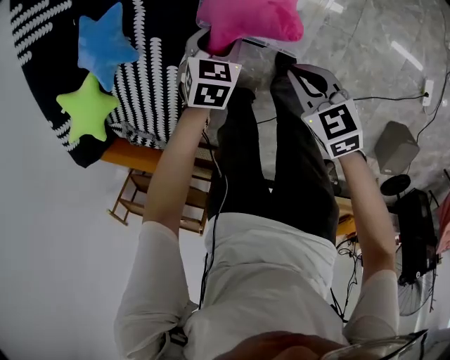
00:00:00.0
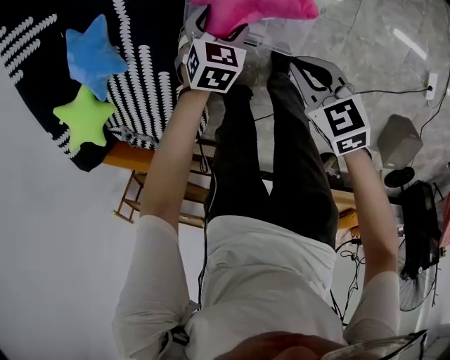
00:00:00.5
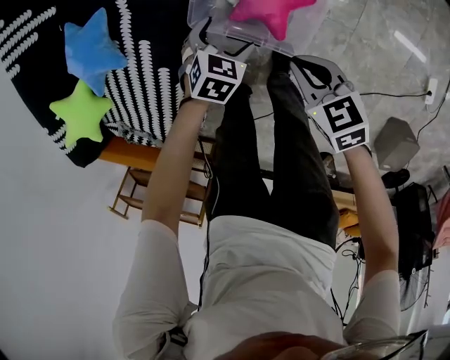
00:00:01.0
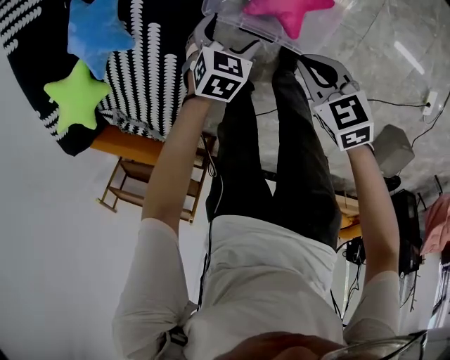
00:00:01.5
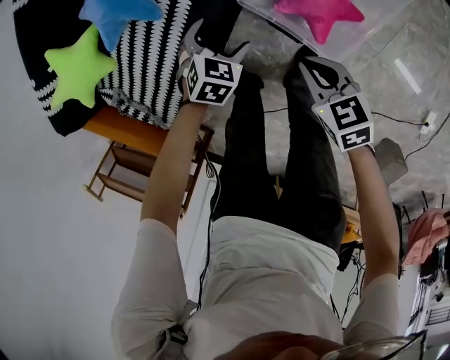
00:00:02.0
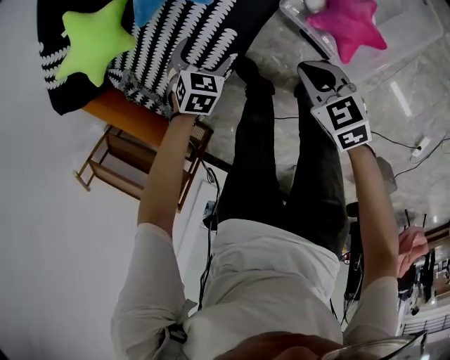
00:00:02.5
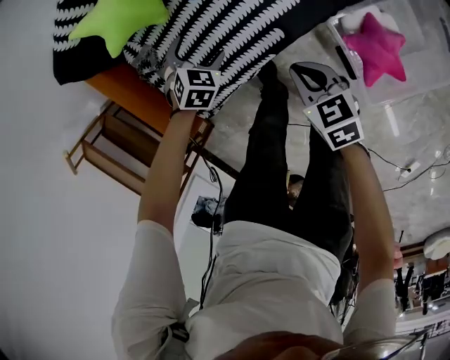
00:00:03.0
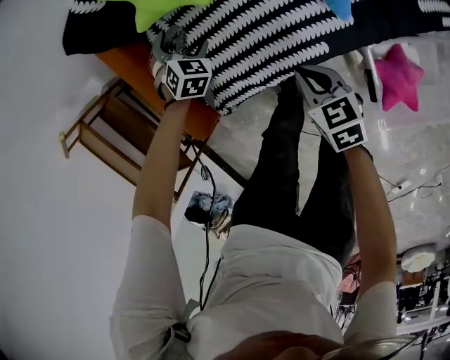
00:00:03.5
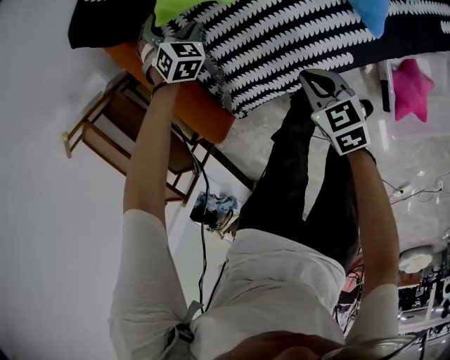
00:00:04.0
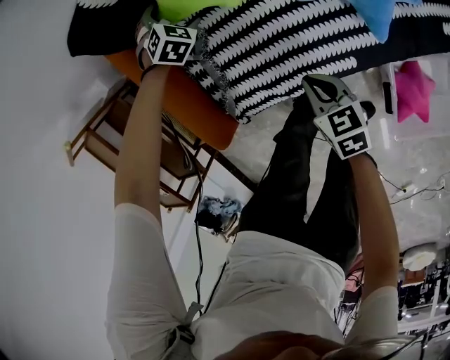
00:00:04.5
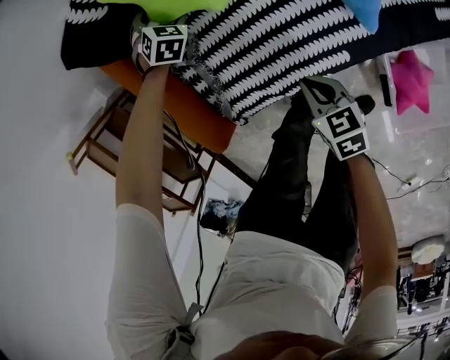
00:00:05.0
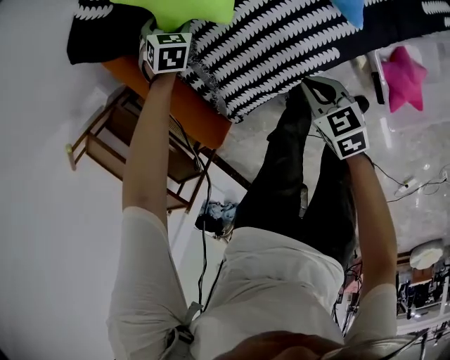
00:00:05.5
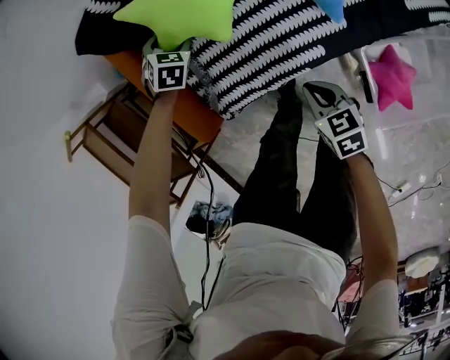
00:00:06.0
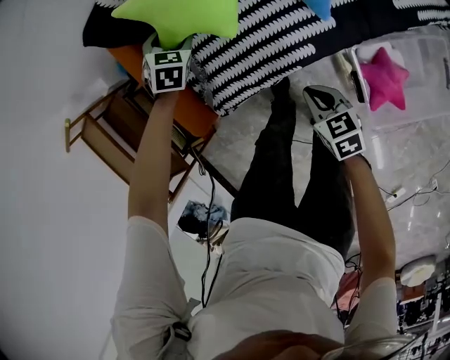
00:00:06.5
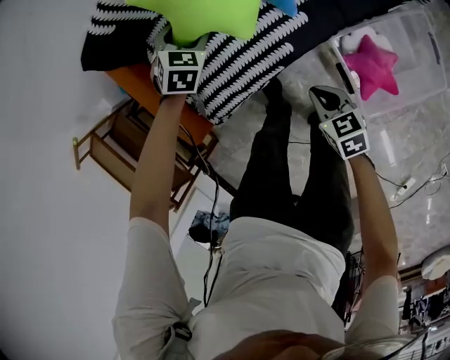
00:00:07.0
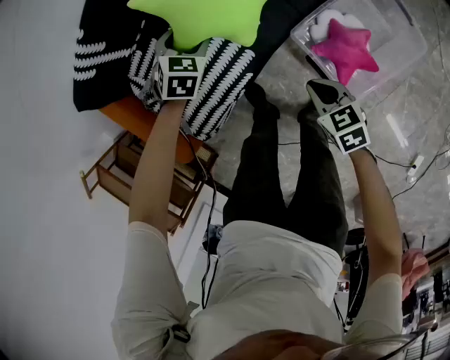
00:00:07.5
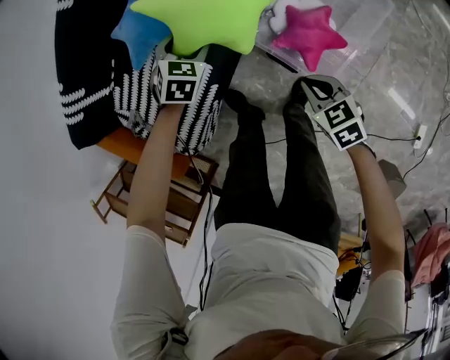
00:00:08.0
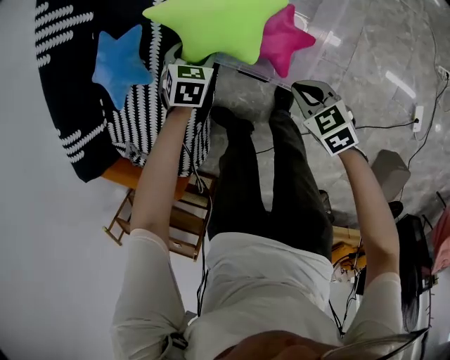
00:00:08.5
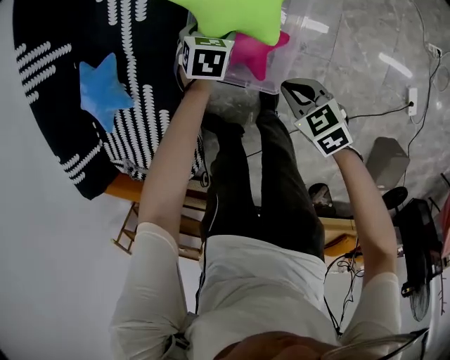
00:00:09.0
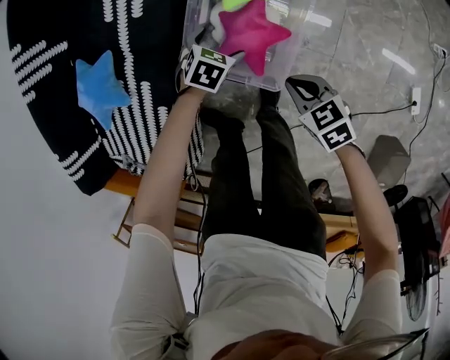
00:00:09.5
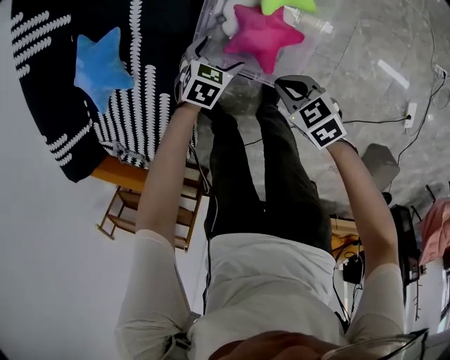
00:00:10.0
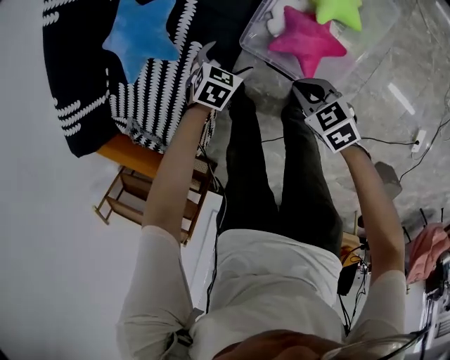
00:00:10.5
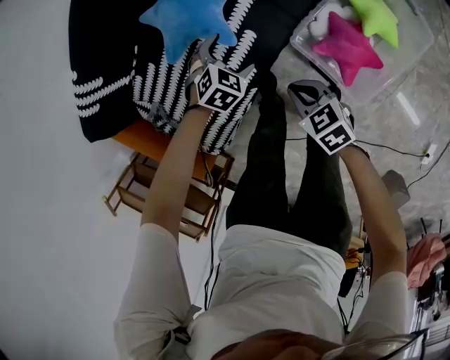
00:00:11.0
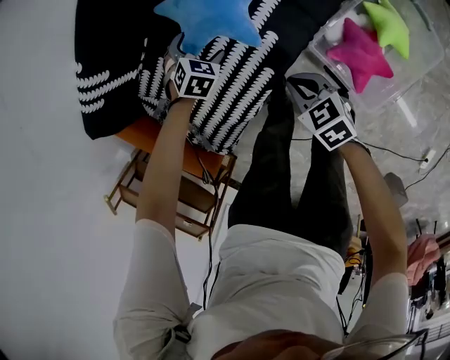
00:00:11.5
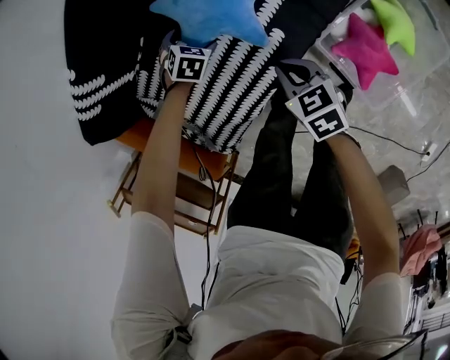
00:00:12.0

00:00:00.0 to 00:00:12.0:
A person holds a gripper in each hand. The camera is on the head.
00:00:00.0 to 00:00:02.0: The right gripper heads to the left and downward, covering about 10 cm, while the left gripper is displaced to the left by approximately 15 cm, and opens.
00:00:02.0 to 00:00:04.0: The two grippers travel together, about 60 cm. The left gripper turns by approximately 40 degrees. The right gripper changes its angle by approximately 30 degrees.
00:00:04.0 to 00:00:06.0: The grippers both shift backward by approximately 10 cm.
00:00:06.0 to 00:00:08.0: The two grippers travel together, some 50 cm. The right gripper turns by about 30 degrees. The left gripper rotates some 40 degrees.
00:00:08.0 to 00:00:10.0: The left gripper changes place by some 30 cm, and turns by roughly 30 degrees.
00:00:10.0 to 00:00:12.0: The pair of grippers is taken roughly 50 cm. The left gripper rotates some 30 degrees.

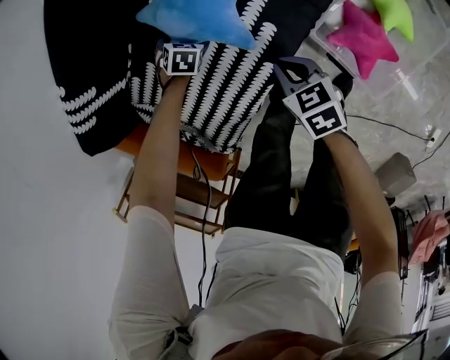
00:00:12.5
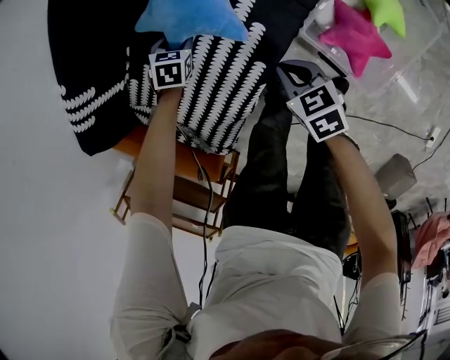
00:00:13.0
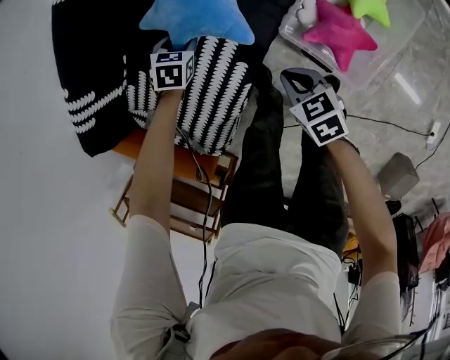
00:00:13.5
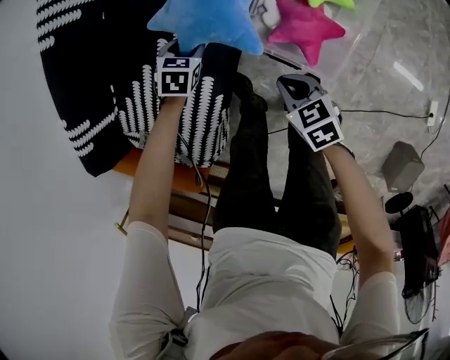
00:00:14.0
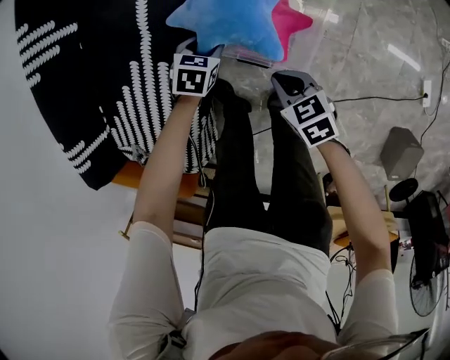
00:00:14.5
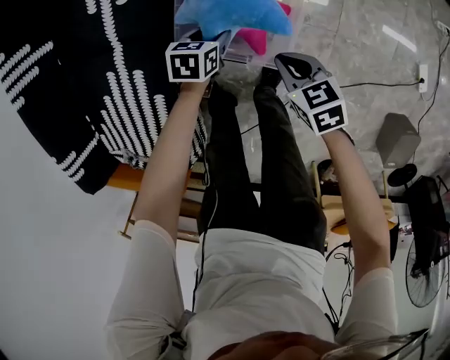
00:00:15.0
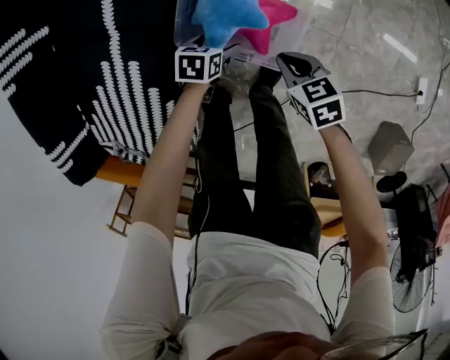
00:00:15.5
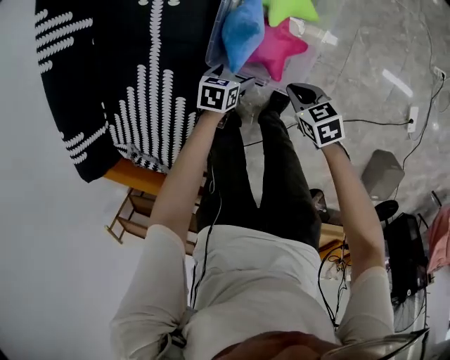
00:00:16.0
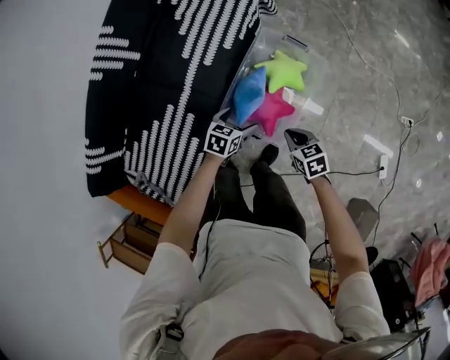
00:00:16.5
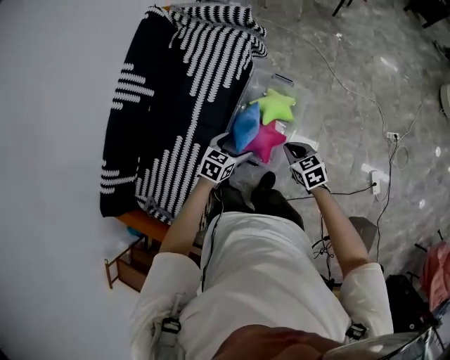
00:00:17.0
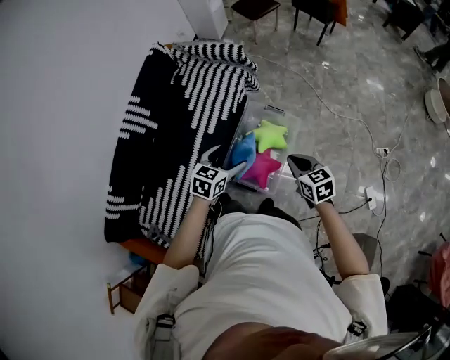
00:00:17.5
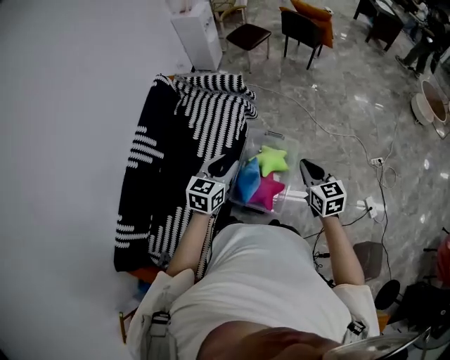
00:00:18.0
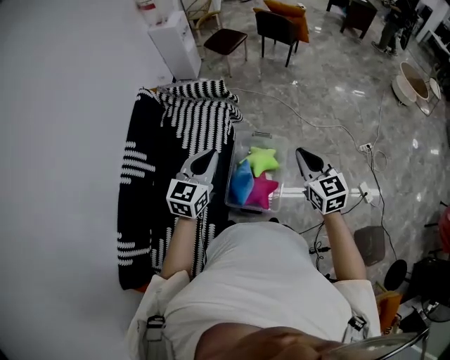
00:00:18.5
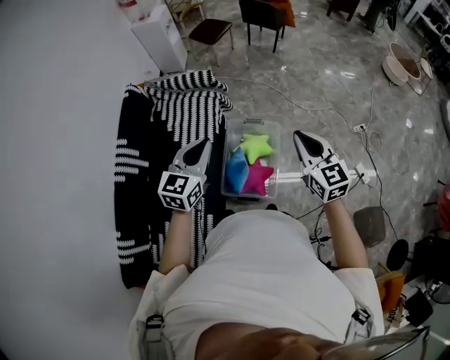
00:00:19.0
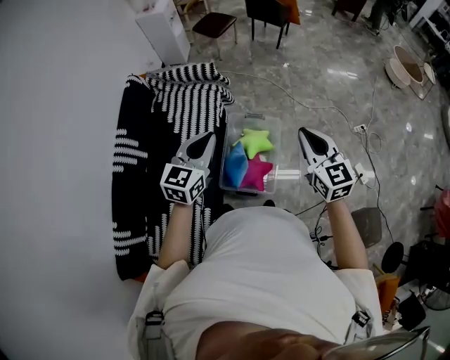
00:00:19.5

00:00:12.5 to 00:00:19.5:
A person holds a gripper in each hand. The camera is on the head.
00:00:12.5 to 00:00:14.5: The right gripper ends up about 40 cm from where it was, and turns by roughly 20 degrees, while the left gripper changes place by approximately 50 cm, swivels about 30 degrees, and closes its fingers.
00:00:14.5 to 00:00:16.0: The left gripper moves about 10 cm downward and comes back, and opens its fingers; the right gripper moves some 10 cm downward and comes back.
00:00:16.0 to 00:00:17.5: The two grippers go approximately 50 cm upward. The right gripper turns by some 30 degrees; the left gripper swivels approximately 40 degrees.
00:00:17.5 to 00:00:19.5: The grippers both shift upward by approximately 20 cm. The left gripper swivels about 30 degrees, and closes its fingers. Meanwhile the right gripper swivels roughly 30 degrees.

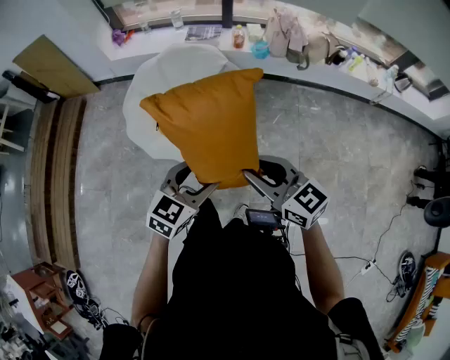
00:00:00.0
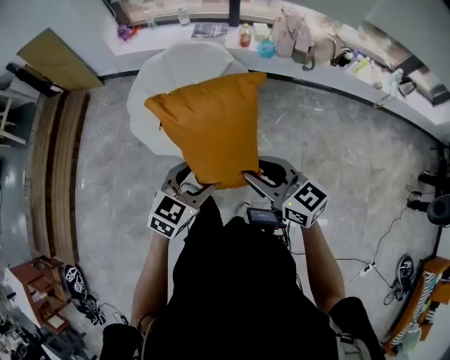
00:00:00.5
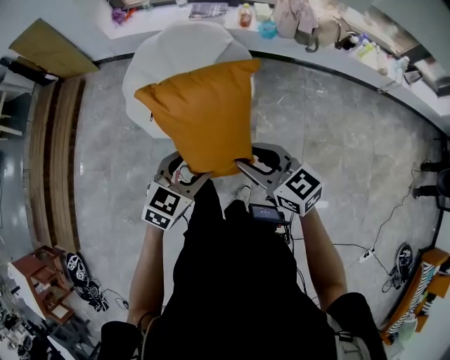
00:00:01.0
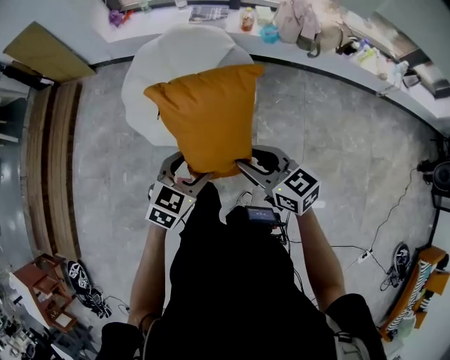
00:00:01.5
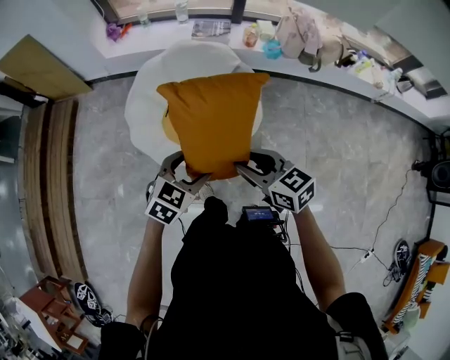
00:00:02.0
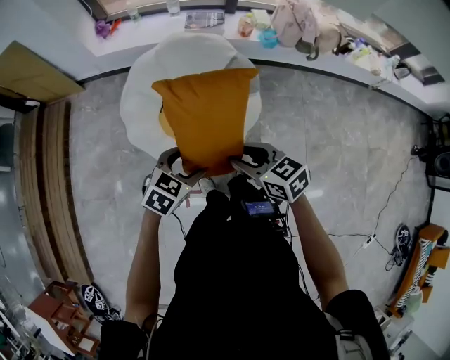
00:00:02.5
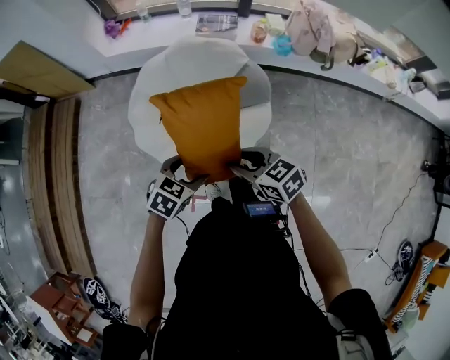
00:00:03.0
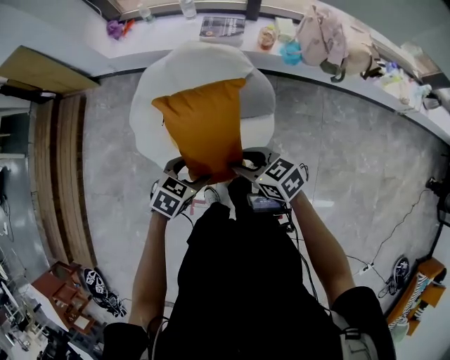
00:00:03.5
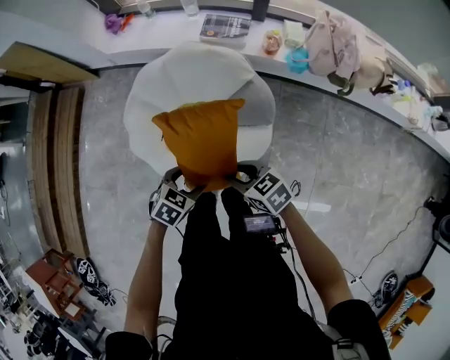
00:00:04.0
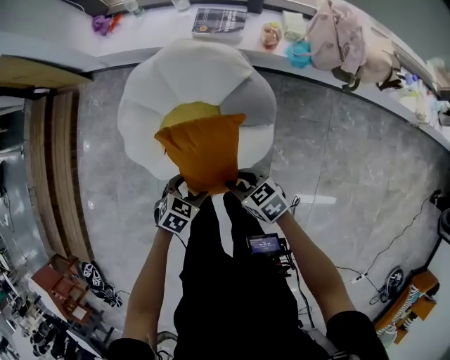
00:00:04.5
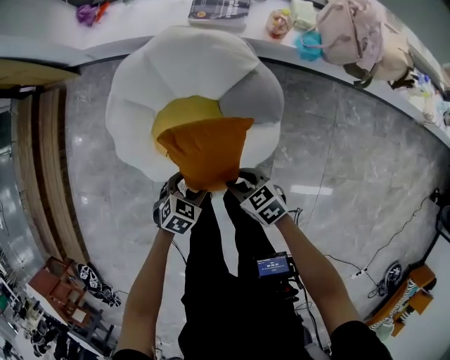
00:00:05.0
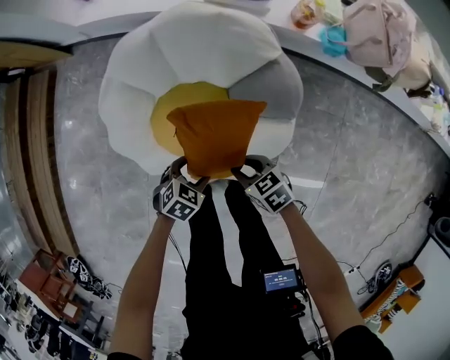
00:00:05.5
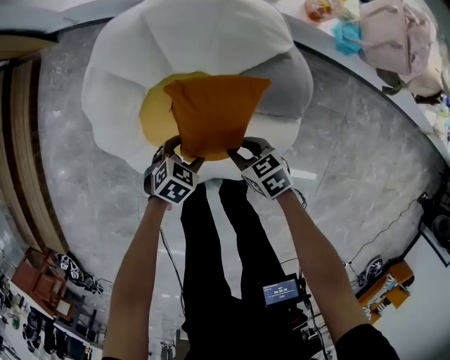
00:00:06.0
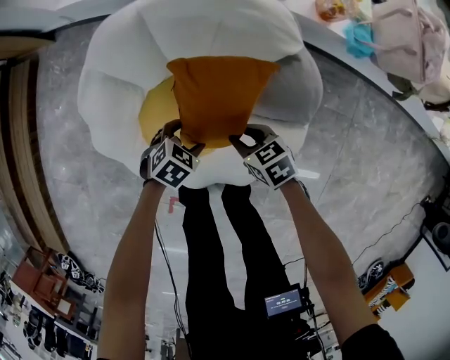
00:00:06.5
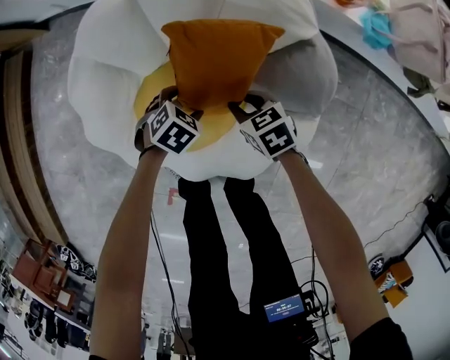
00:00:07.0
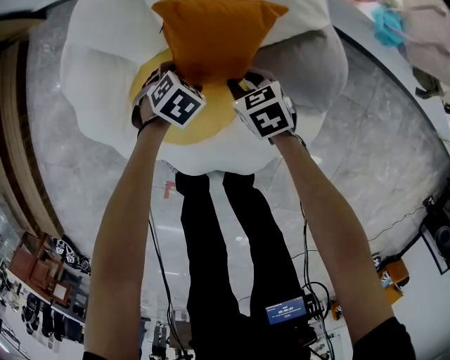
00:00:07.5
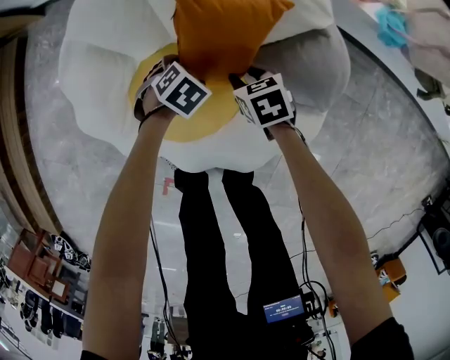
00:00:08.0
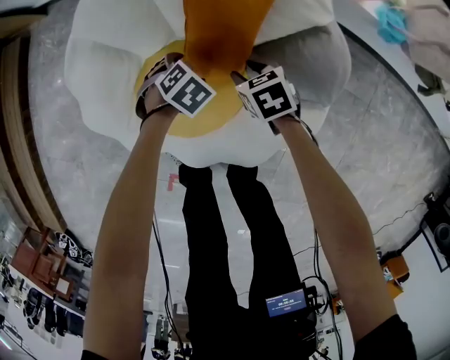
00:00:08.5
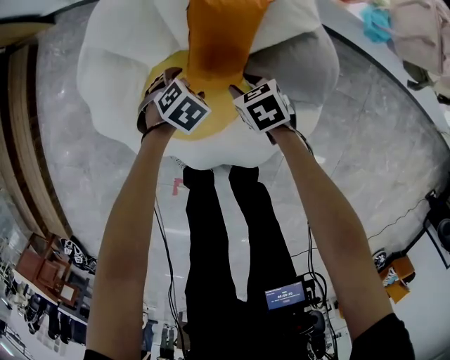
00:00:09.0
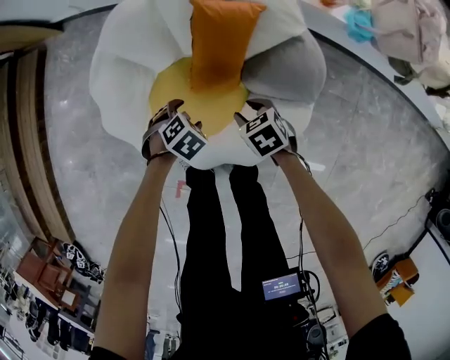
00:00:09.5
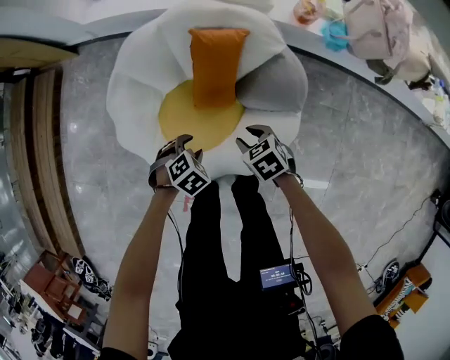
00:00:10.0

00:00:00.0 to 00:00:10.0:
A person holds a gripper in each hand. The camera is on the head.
00:00:00.0 to 00:00:02.0: The right gripper travels forward, to the left and downward by roughly 20 cm; the left gripper goes roughly 20 cm to the left and forward.
00:00:02.0 to 00:00:04.0: The left gripper moves approximately 25 cm, and swivels roughly 30 degrees, while the right gripper moves some 25 cm, and rotates about 20 degrees.
00:00:04.0 to 00:00:06.0: The two grippers go some 30 cm downward.
00:00:06.0 to 00:00:08.0: The left gripper ends up approximately 20 cm from where it was. The right gripper travels downward by roughly 15 cm.
00:00:08.0 to 00:00:10.0: Both grippers travel together upward, roughly 20 cm. The left gripper closes its fingers.
